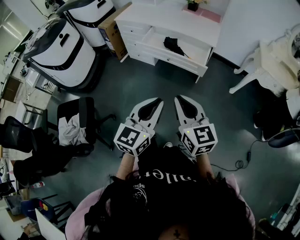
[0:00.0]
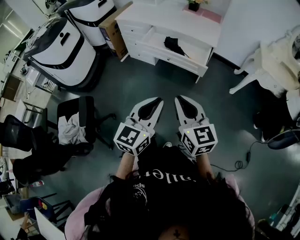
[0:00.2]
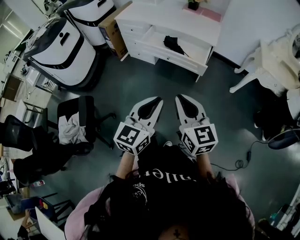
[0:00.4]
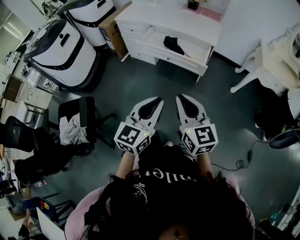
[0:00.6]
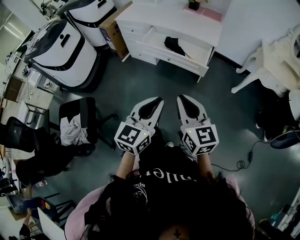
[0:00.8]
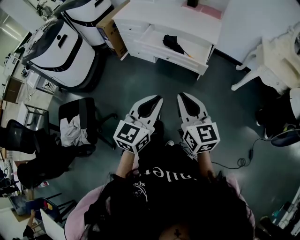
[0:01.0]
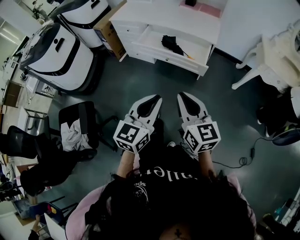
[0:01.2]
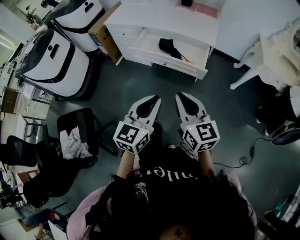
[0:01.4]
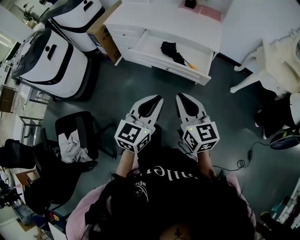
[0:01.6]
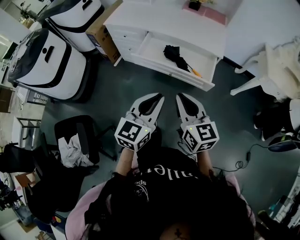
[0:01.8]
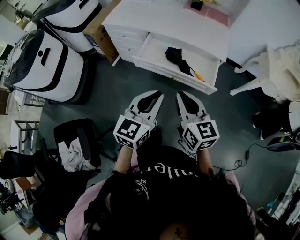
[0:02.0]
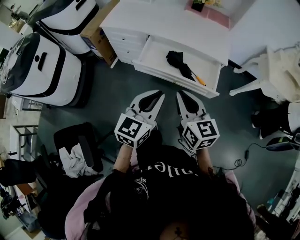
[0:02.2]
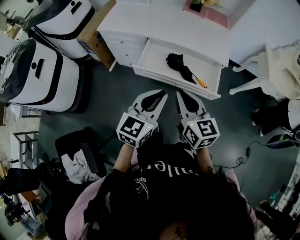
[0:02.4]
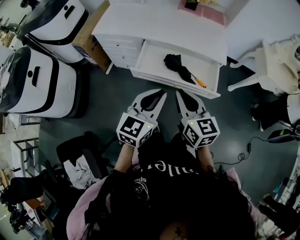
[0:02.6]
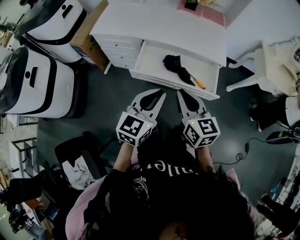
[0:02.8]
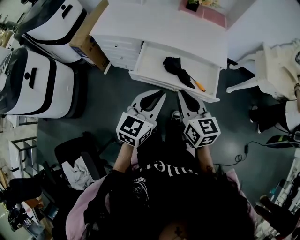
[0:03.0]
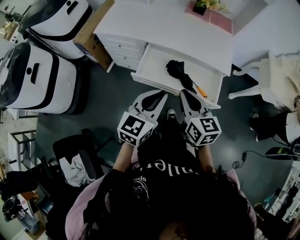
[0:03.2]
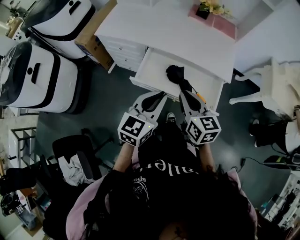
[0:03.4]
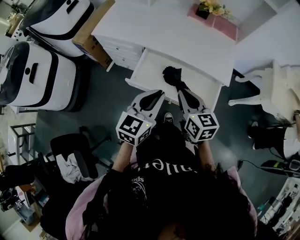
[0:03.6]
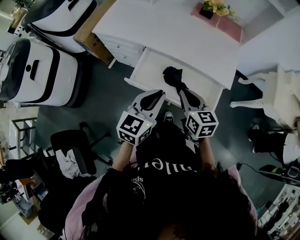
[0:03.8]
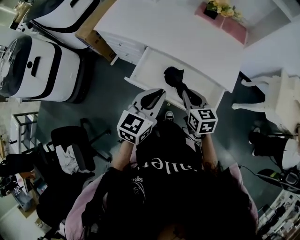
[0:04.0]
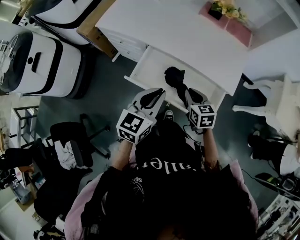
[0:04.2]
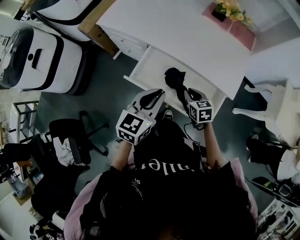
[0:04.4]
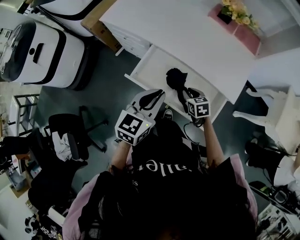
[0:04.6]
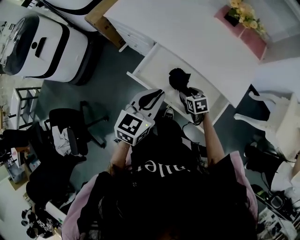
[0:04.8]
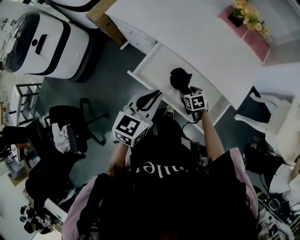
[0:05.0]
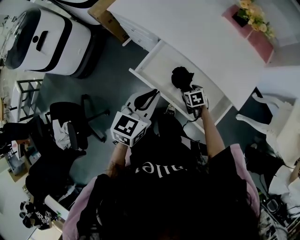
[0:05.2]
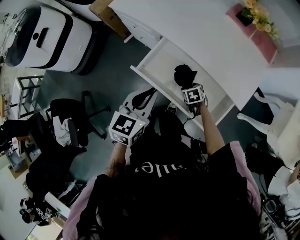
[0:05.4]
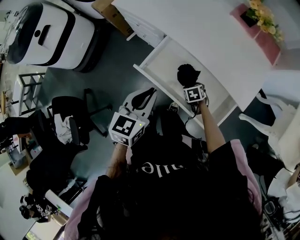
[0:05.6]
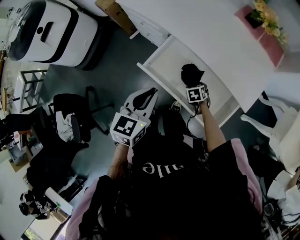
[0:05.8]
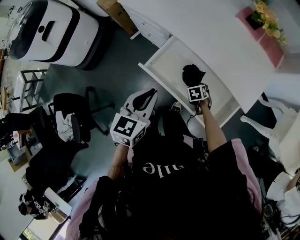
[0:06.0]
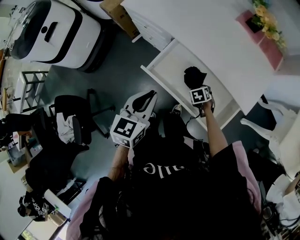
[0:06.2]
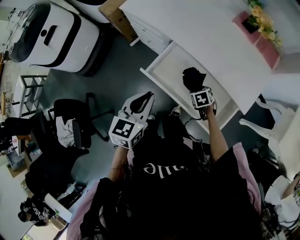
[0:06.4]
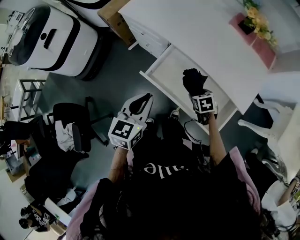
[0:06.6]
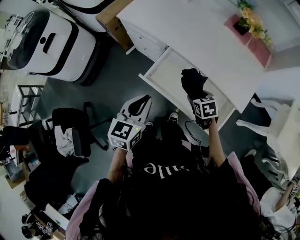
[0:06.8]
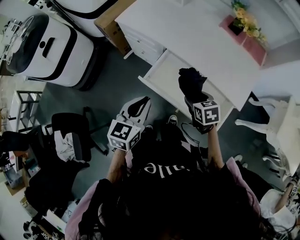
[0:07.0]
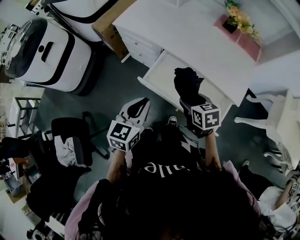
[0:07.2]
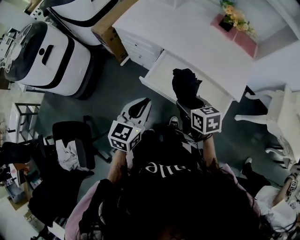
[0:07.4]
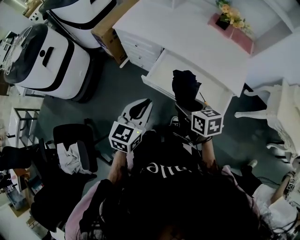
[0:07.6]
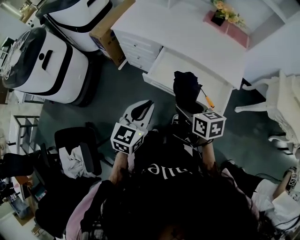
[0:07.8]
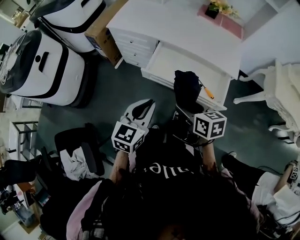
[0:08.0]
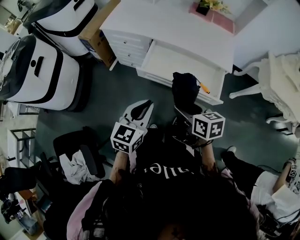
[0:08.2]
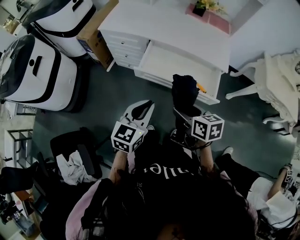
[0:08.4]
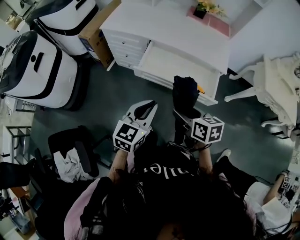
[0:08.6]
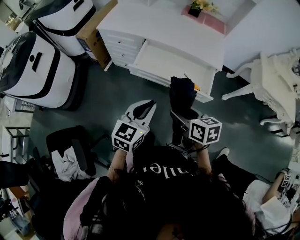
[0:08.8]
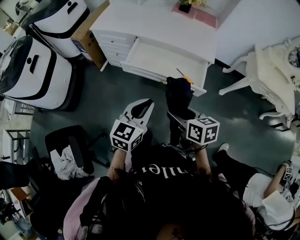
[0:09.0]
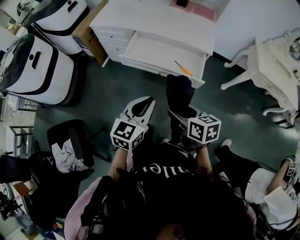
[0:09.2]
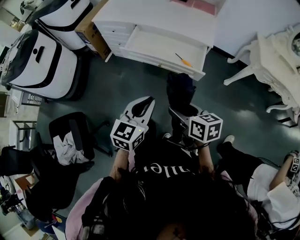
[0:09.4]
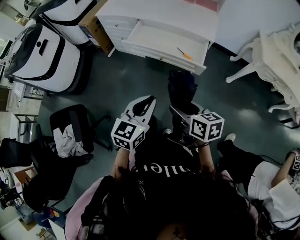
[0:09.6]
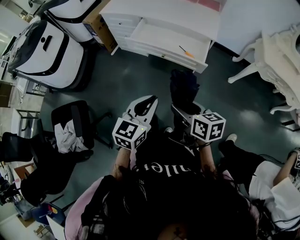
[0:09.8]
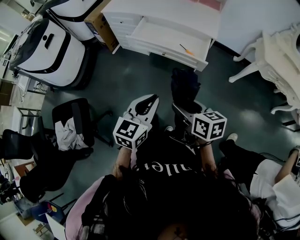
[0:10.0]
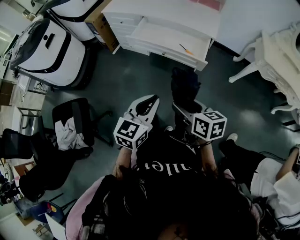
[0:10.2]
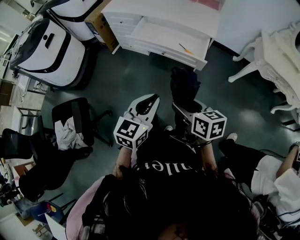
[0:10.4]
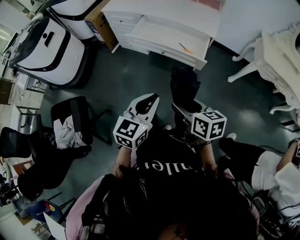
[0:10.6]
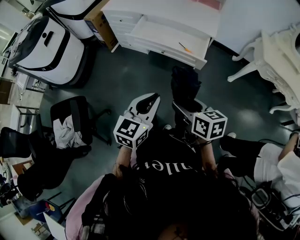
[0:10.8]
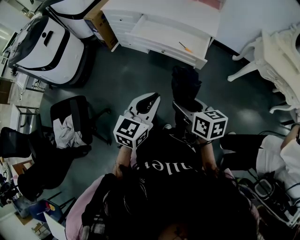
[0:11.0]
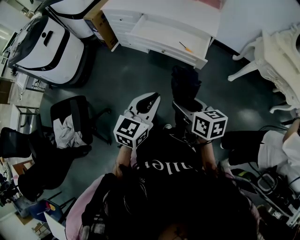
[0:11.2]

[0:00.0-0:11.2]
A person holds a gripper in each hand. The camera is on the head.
0:00.0 to 0:01.6: The two grippers go roughly 15 cm forward.
0:01.6 to 0:03.2: Both grippers travel together forward and to the left, roughly 30 cm.
0:03.2 to 0:04.8: The left gripper moves some 15 cm, and swivels some 20 degrees; the right gripper is displaced downward by roughly 30 cm, angles its fingers downward, by roughly 40 degrees, and opens.
0:04.8 to 0:06.4: The right gripper swivels some 20 degrees. Meanwhile the left gripper ends up approximately 10 cm from where it was.
0:06.4 to 0:08.0: The left gripper is displaced backward and to the left by roughly 15 cm, and turns by approximately 20 degrees, while the right gripper is displaced upward, backward and to the left by roughly 40 cm, and tips its fingers upward by about 40 degrees.
0:08.0 to 0:09.6: The two grippers go about 30 cm backward and to the right.
0:09.6 to 0:11.2: The left gripper moves roughly 5 cm.

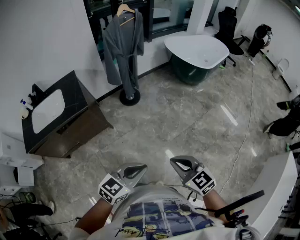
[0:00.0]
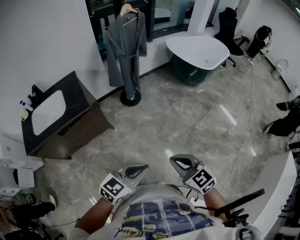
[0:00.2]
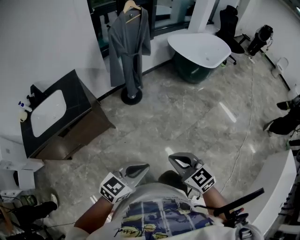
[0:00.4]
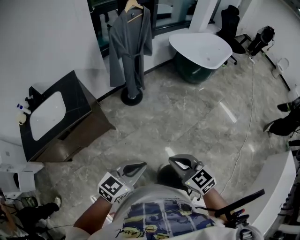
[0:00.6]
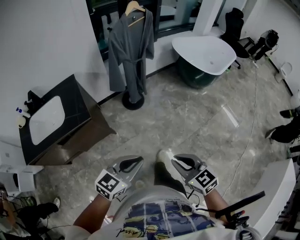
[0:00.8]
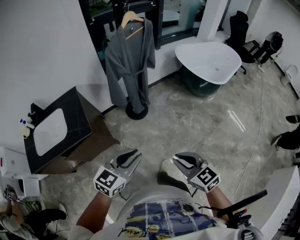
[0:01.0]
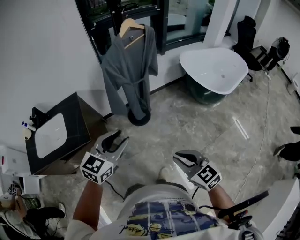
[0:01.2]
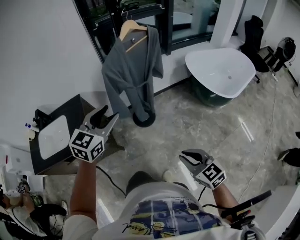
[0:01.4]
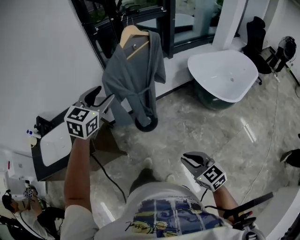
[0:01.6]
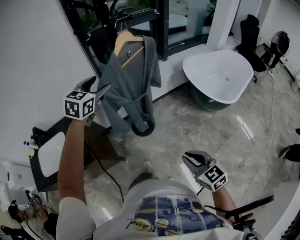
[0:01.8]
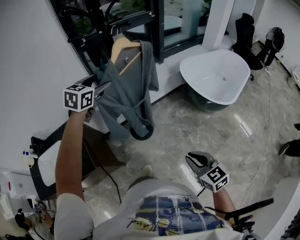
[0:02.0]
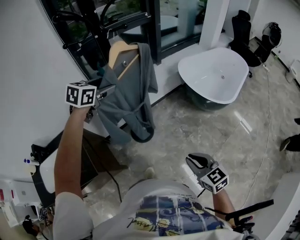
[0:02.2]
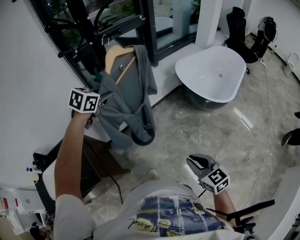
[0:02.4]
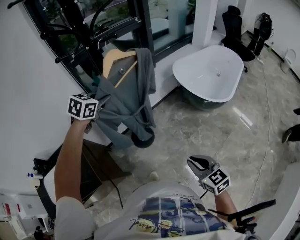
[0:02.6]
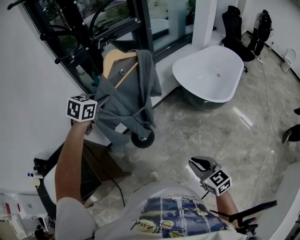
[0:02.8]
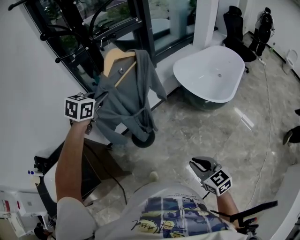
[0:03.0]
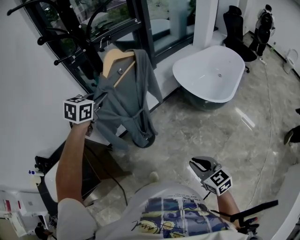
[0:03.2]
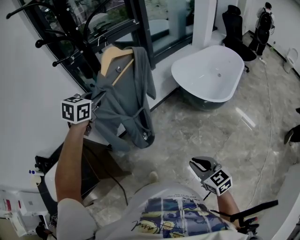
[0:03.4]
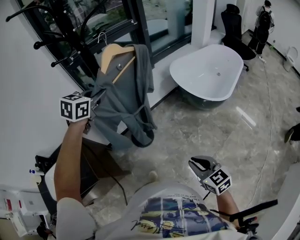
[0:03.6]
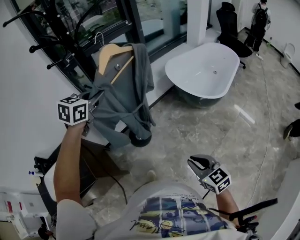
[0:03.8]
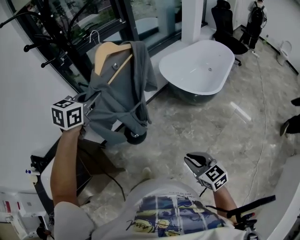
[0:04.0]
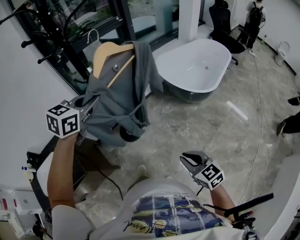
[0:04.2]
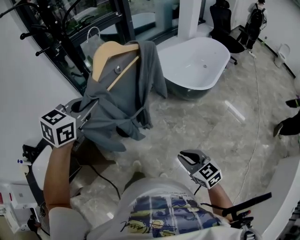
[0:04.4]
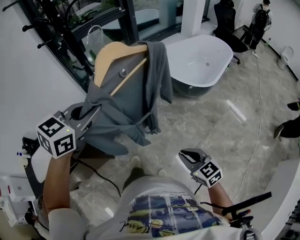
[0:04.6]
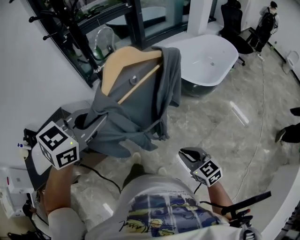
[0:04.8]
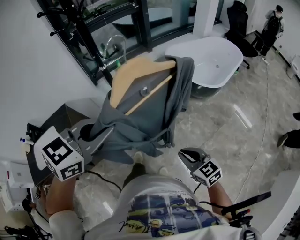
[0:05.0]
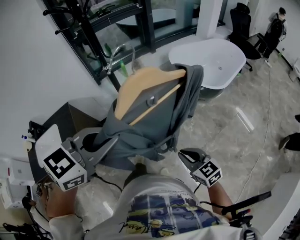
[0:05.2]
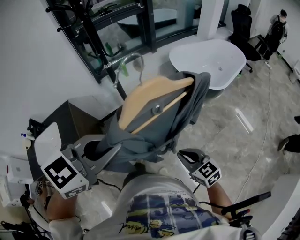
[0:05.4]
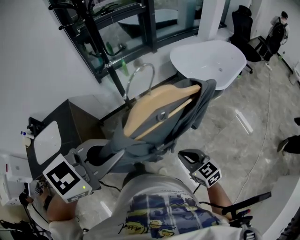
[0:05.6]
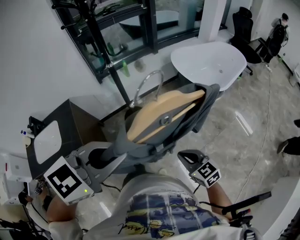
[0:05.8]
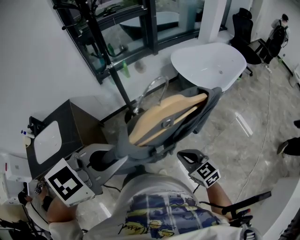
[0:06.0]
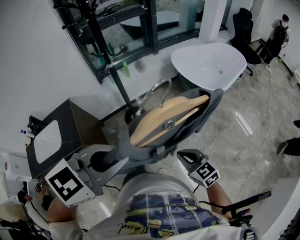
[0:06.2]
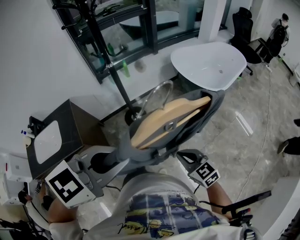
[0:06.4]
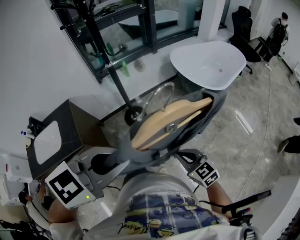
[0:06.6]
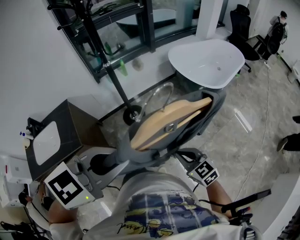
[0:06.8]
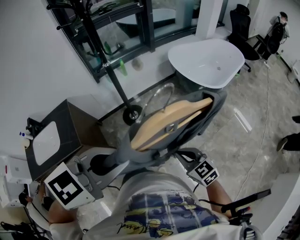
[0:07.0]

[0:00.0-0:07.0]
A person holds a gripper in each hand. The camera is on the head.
0:00.0 to 0:01.4: The two grippers go some 40 cm forward. The left gripper swivels roughly 40 degrees, and opens its fingers.
0:01.4 to 0:02.8: The left gripper is displaced forward by about 30 cm, turns by some 20 degrees, and closes up. Meanwhile the right gripper is displaced forward by approximately 10 cm, and turns by roughly 20 degrees.
0:02.8 to 0:04.2: The right gripper goes about 10 cm to the right and backward; the left gripper is displaced backward, to the right and upward by some 20 cm.
0:04.2 to 0:05.6: The right gripper is displaced backward by some 5 cm, while the left gripper heads backward, covering approximately 30 cm.
0:05.6 to 0:07.0: The grippers stay close to where they were, moving slightly.

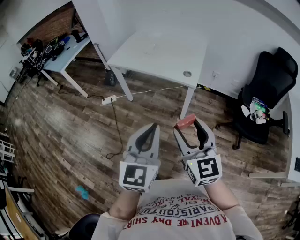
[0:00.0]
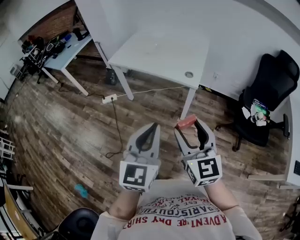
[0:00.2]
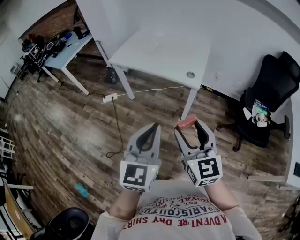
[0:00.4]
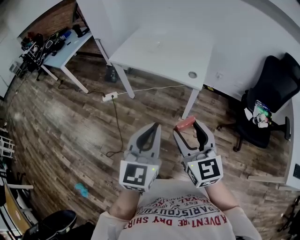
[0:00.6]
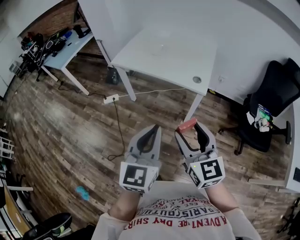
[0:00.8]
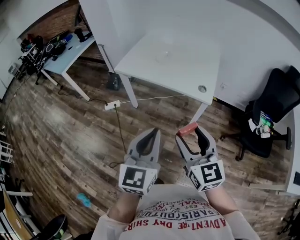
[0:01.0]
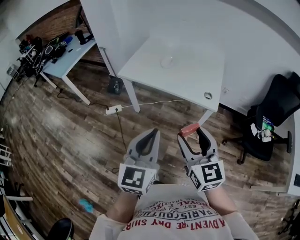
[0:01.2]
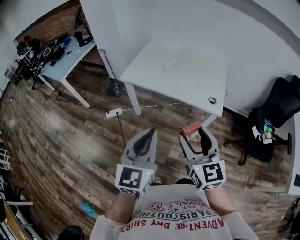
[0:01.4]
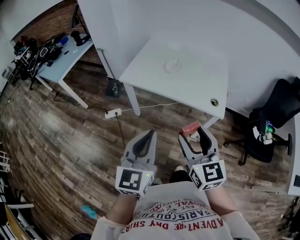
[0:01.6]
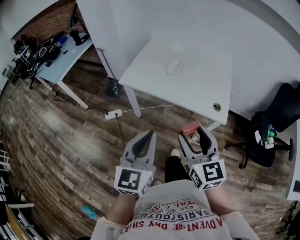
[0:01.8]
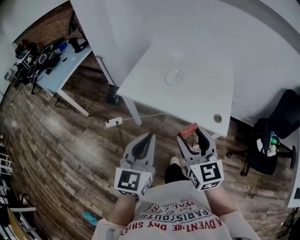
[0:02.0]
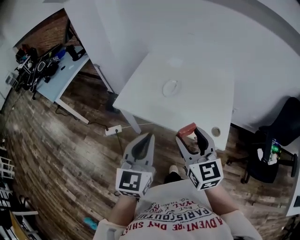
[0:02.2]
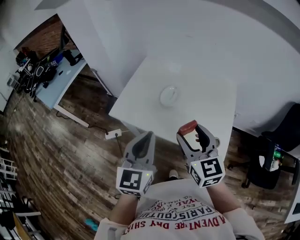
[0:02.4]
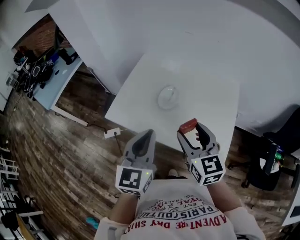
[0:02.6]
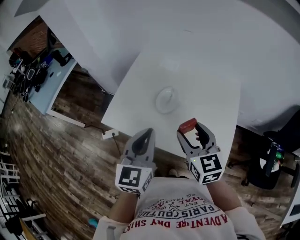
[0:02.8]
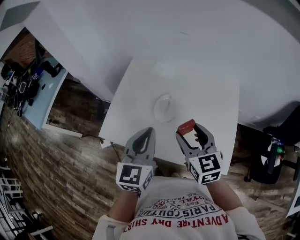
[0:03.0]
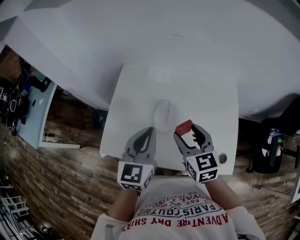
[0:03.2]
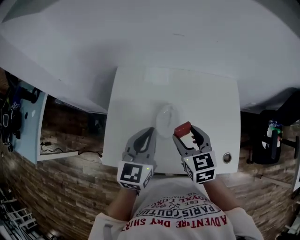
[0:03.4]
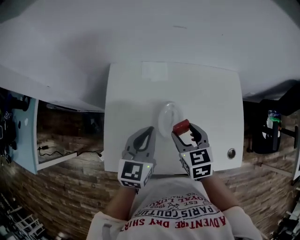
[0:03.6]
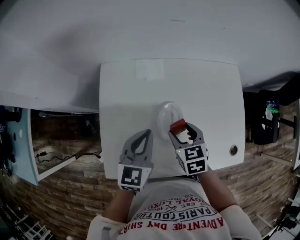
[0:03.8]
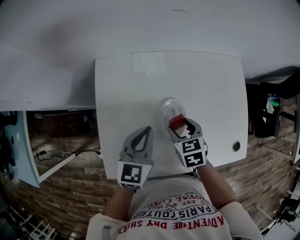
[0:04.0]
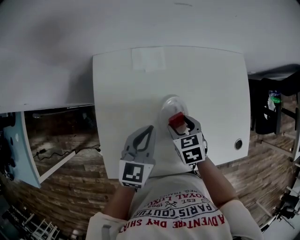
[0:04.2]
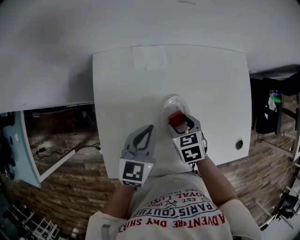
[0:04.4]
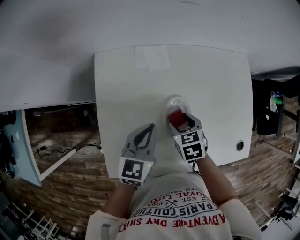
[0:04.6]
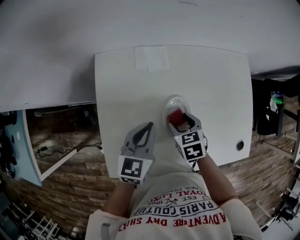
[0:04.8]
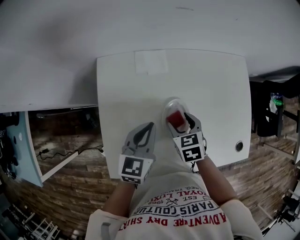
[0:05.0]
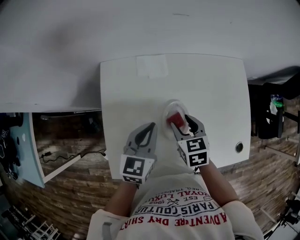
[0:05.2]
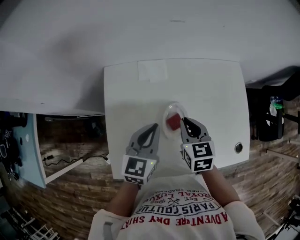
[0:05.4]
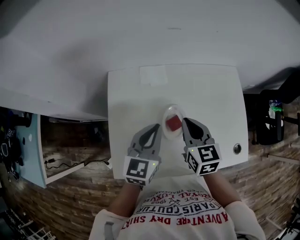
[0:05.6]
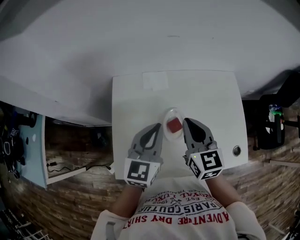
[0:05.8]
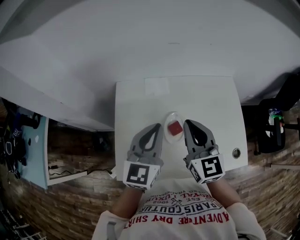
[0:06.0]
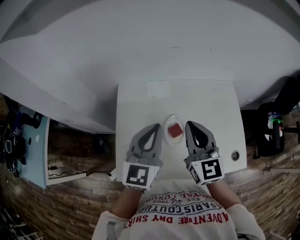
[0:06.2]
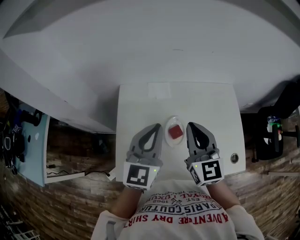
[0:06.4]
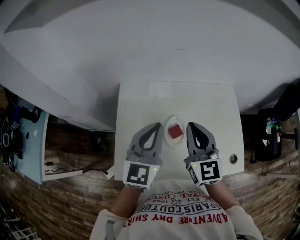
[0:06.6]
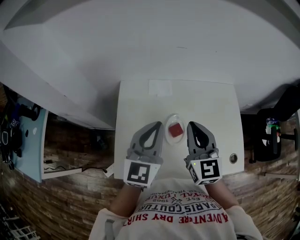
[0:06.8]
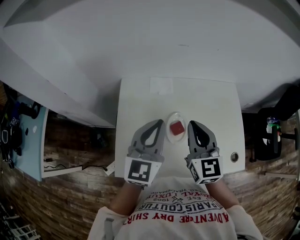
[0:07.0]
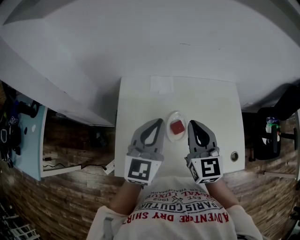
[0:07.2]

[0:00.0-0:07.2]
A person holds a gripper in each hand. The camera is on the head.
0:00.0 to 0:01.4: The grippers both shift forward and to the left by about 25 cm.
0:01.4 to 0:02.8: The two grippers travel together, forward, roughly 40 cm.
0:02.8 to 0:04.4: The right gripper shifts some 25 cm downward, and tilts its fingers about 40 degrees downward, while the left gripper moves roughly 30 cm, and swivels roughly 40 degrees.
0:04.4 to 0:05.8: The right gripper goes approximately 25 cm upward, angles its fingers upward, by some 40 degrees, and closes its fingers, while the left gripper travels upward by some 15 cm.
0:05.8 to 0:07.2: The left gripper moves upward, approximately 5 cm.
